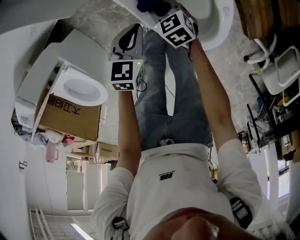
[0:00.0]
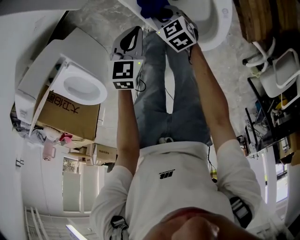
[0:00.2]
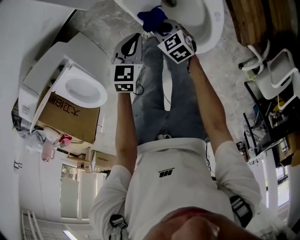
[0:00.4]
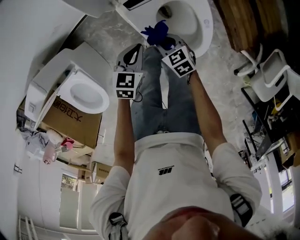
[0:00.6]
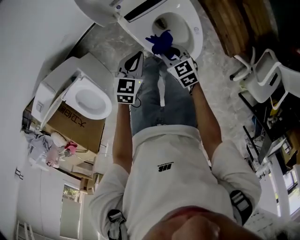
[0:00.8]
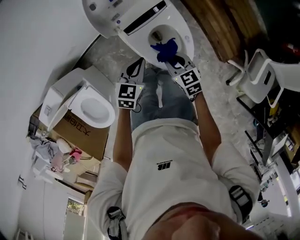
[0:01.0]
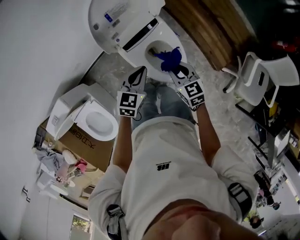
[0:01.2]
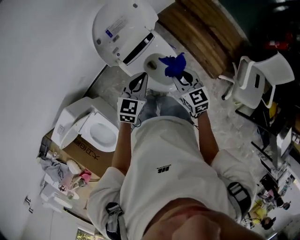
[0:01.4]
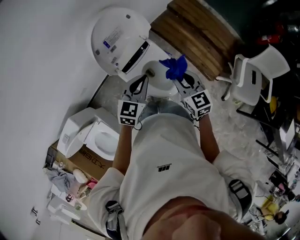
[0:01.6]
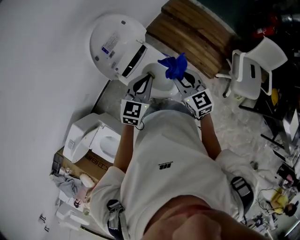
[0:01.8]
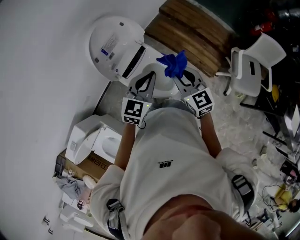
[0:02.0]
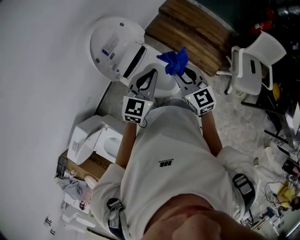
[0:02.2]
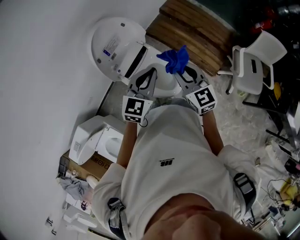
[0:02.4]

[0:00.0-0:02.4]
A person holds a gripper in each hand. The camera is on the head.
0:00.0 to 0:01.2: Both grippers travel together upward, some 40 cm. The left gripper changes its angle by some 20 degrees. The right gripper turns by about 30 degrees.
0:01.2 to 0:02.4: Both grippers move upward, about 20 cm. The left gripper turns by about 30 degrees. The right gripper rotates roughly 30 degrees.

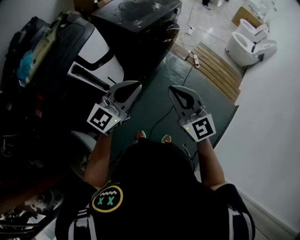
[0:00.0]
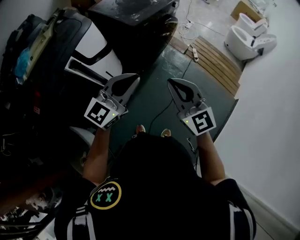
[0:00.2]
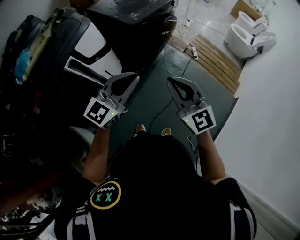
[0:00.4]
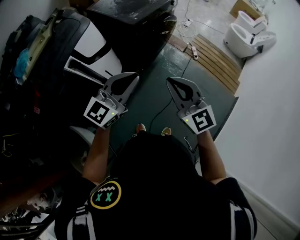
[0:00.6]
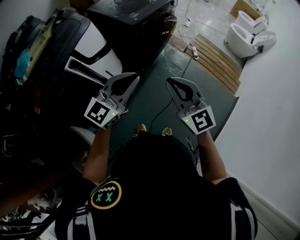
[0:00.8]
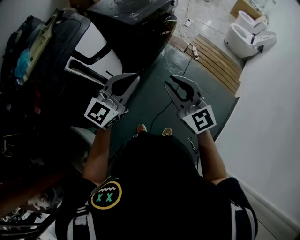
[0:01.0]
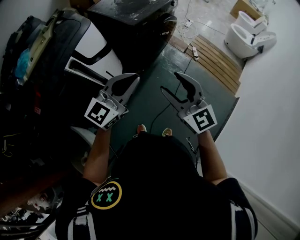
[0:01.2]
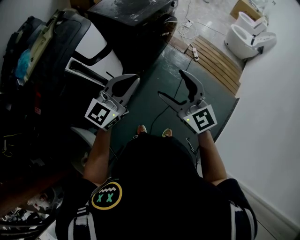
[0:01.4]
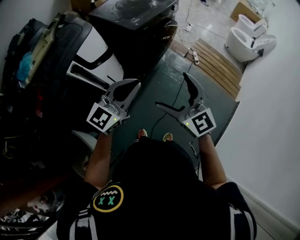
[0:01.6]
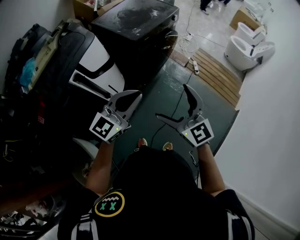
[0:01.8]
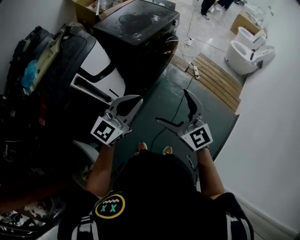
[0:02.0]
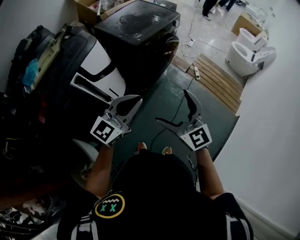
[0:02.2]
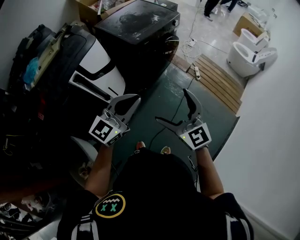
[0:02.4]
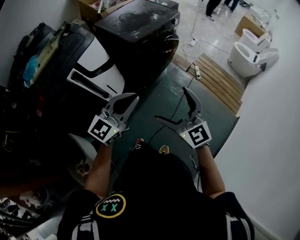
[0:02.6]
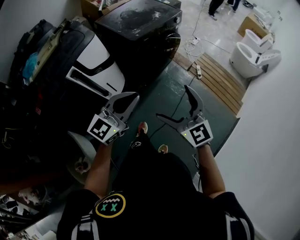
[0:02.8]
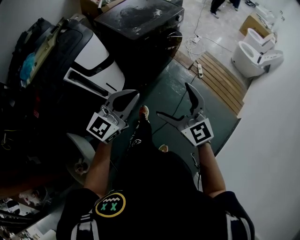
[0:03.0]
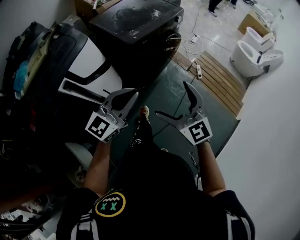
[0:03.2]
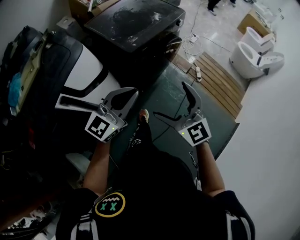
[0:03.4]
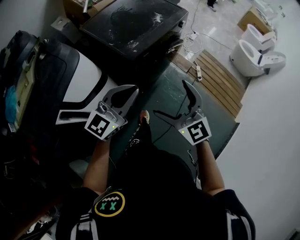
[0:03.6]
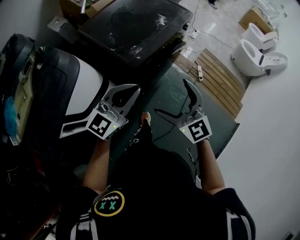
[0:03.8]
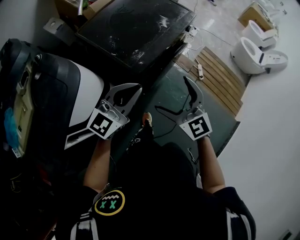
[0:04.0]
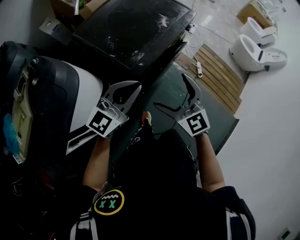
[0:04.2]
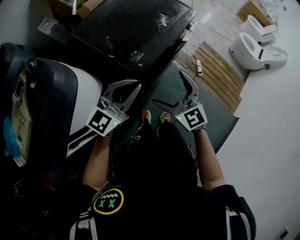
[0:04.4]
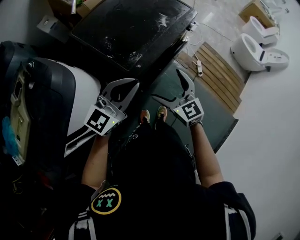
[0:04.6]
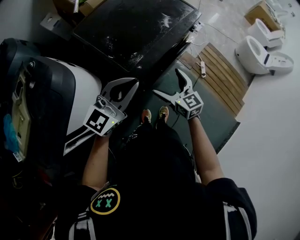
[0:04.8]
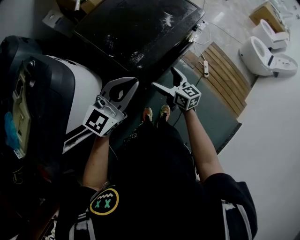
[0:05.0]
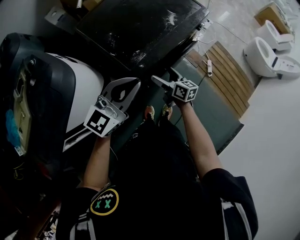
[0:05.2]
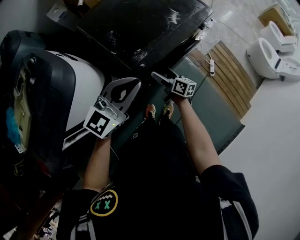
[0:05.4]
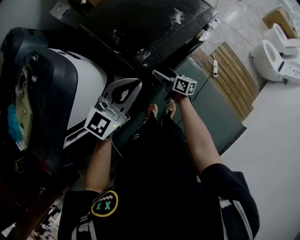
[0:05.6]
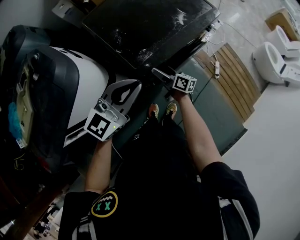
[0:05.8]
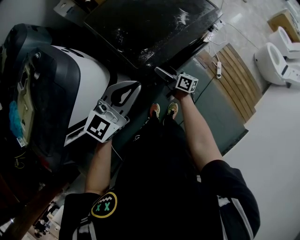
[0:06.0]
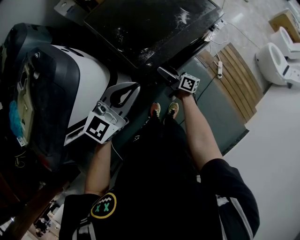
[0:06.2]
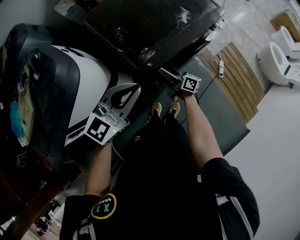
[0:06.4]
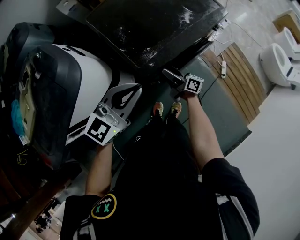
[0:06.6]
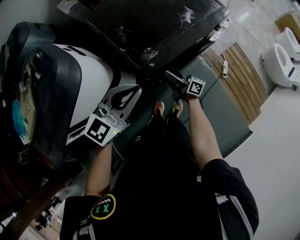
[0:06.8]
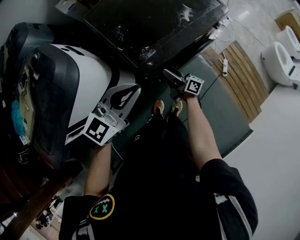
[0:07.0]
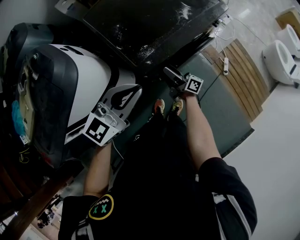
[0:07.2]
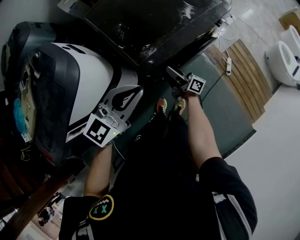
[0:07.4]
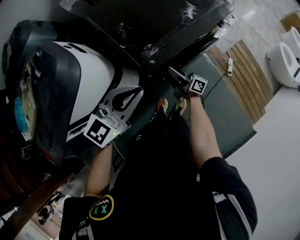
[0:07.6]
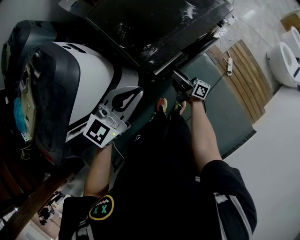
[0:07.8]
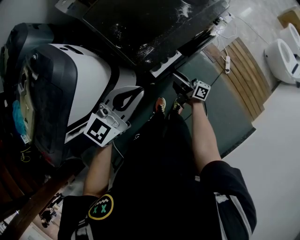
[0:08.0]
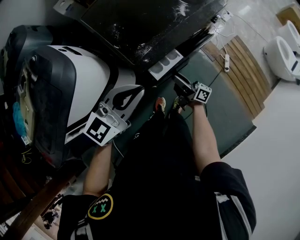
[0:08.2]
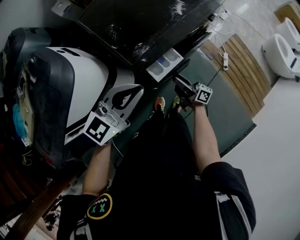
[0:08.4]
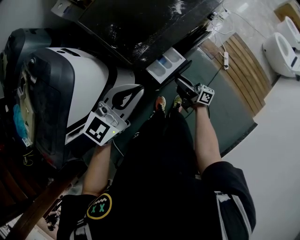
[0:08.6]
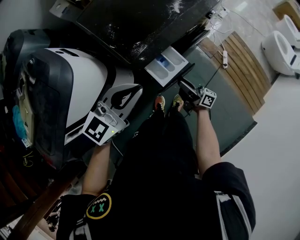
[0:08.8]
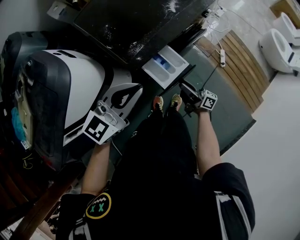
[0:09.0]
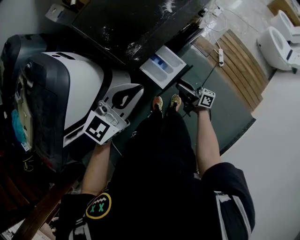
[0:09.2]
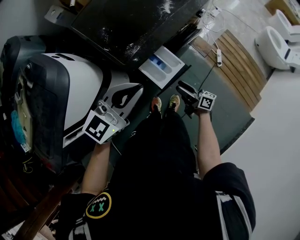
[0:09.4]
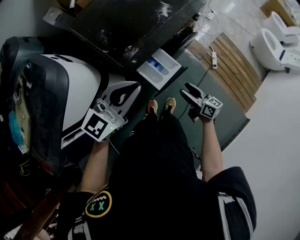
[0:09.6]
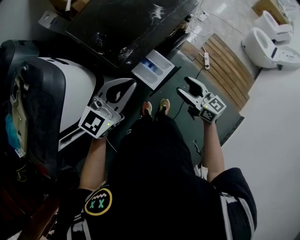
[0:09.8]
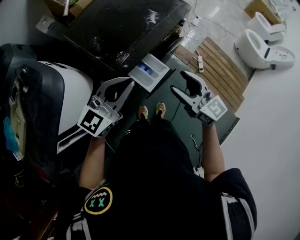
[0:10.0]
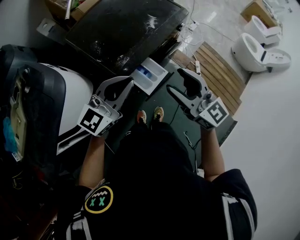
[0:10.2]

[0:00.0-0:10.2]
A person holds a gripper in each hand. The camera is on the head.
0:00.0 to 0:01.4: The right gripper opens up.
0:01.4 to 0:03.0: The right gripper moves to the right, approximately 5 cm, while the left gripper shifts by some 5 cm.
0:03.0 to 0:04.4: The pair of grippers is taken forward, about 40 cm.
0:04.4 to 0:05.8: The right gripper shifts roughly 25 cm downward and forward, and rotates around the line of its fingers by approximately 70 degrees, clockwise from behind.
0:05.8 to 0:07.2: The right gripper swivels approximately 20 degrees, and closes its fingers.
0:07.2 to 0:08.8: The right gripper moves to the right and backward, some 15 cm.
0:08.8 to 0:10.2: The left gripper goes about 5 cm upward; the right gripper shifts approximately 30 cm upward, and twists some 60 degrees counterclockwise, seen from behind.

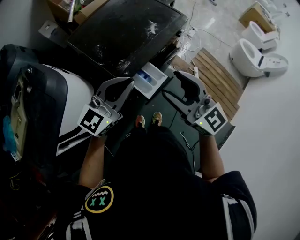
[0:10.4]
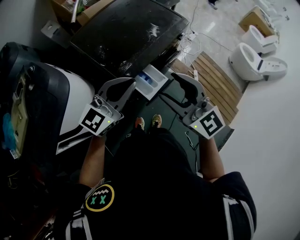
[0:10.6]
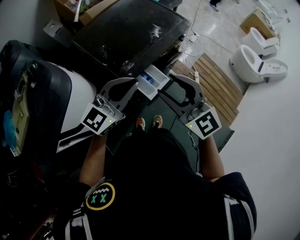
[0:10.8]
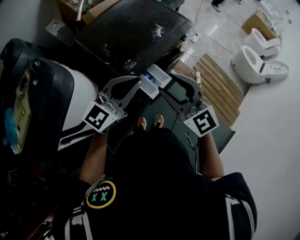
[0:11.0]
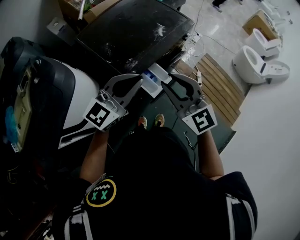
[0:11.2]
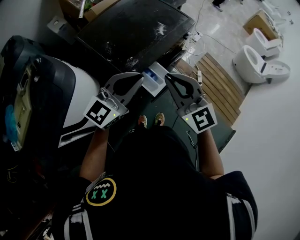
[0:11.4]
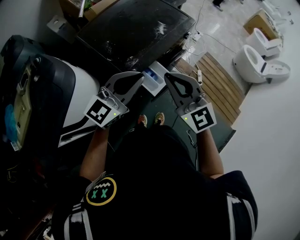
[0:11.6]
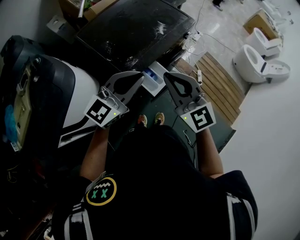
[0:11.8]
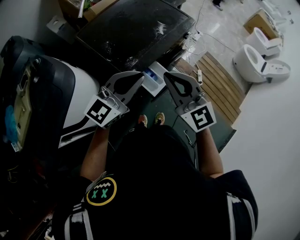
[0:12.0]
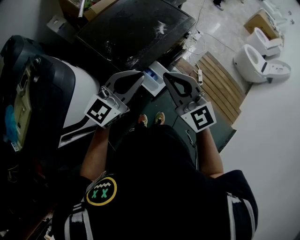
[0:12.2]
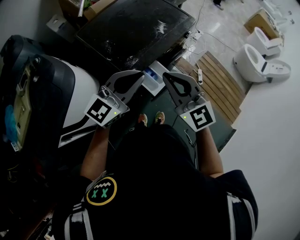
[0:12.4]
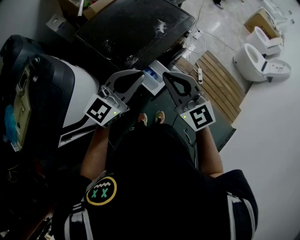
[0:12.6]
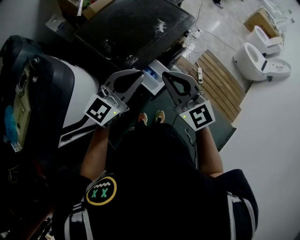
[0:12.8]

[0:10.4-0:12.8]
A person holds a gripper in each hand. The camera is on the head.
0:10.4 to 0:11.6: The right gripper closes its fingers.
0:11.6 to 0:12.8: Neither gripper changes place.

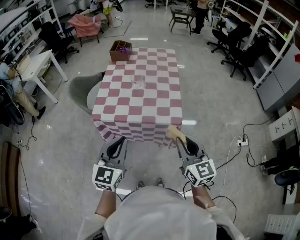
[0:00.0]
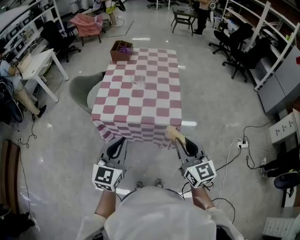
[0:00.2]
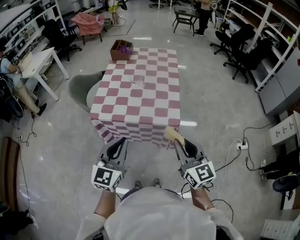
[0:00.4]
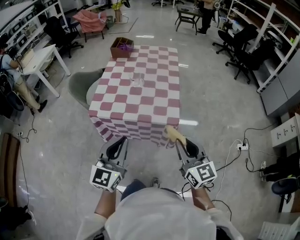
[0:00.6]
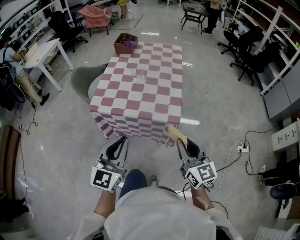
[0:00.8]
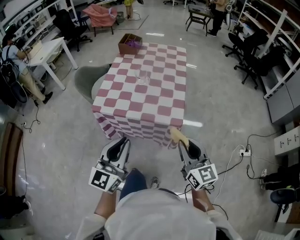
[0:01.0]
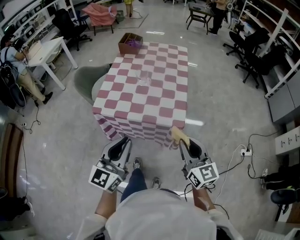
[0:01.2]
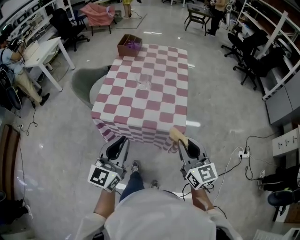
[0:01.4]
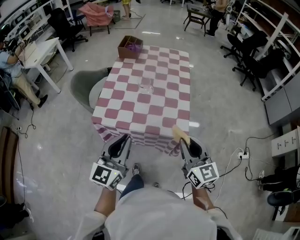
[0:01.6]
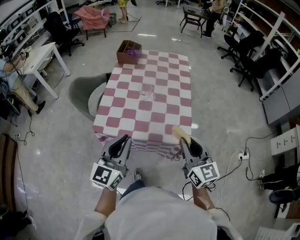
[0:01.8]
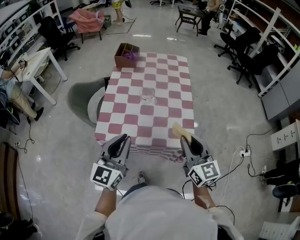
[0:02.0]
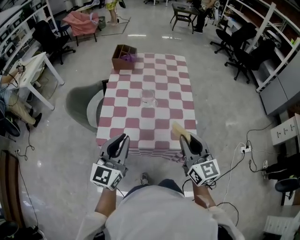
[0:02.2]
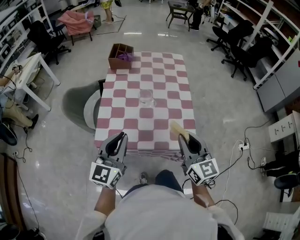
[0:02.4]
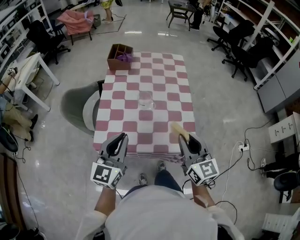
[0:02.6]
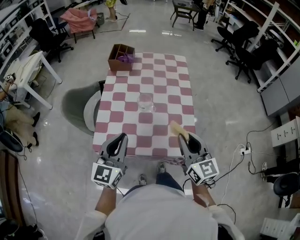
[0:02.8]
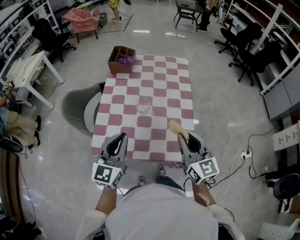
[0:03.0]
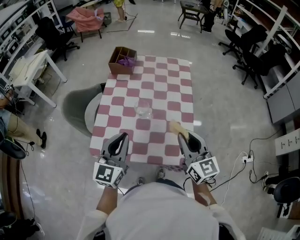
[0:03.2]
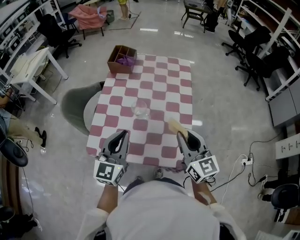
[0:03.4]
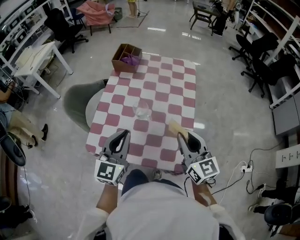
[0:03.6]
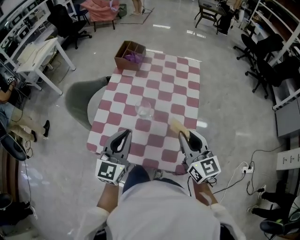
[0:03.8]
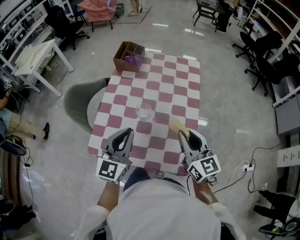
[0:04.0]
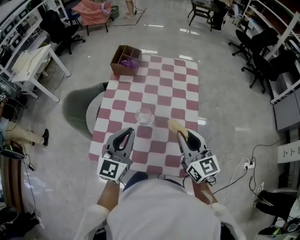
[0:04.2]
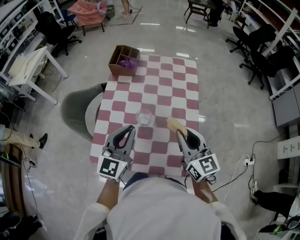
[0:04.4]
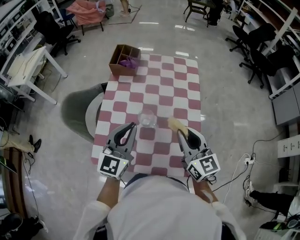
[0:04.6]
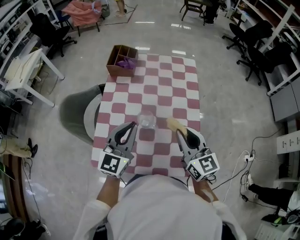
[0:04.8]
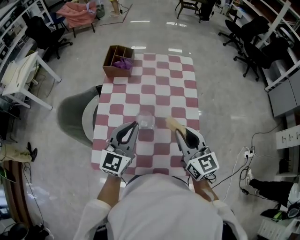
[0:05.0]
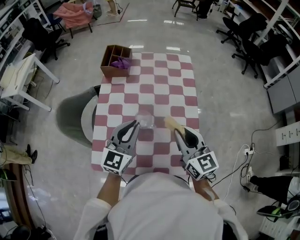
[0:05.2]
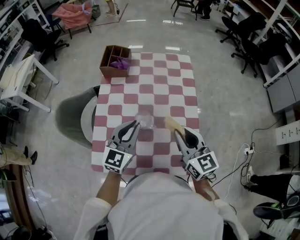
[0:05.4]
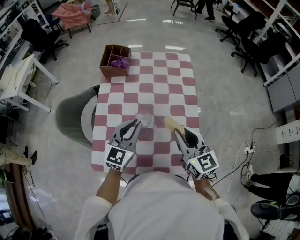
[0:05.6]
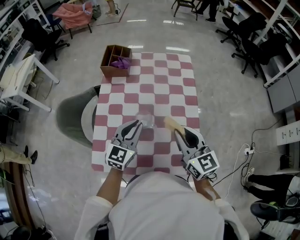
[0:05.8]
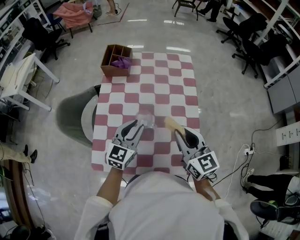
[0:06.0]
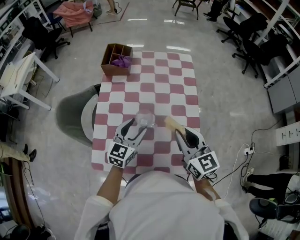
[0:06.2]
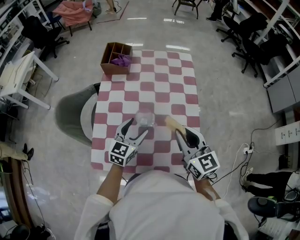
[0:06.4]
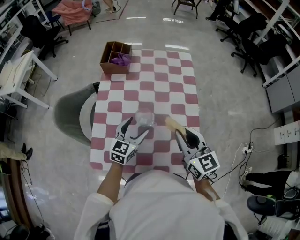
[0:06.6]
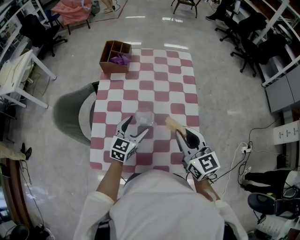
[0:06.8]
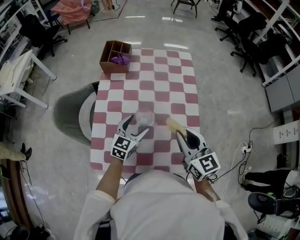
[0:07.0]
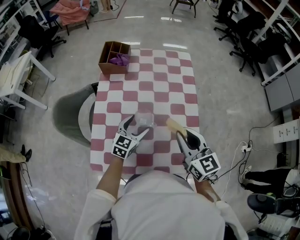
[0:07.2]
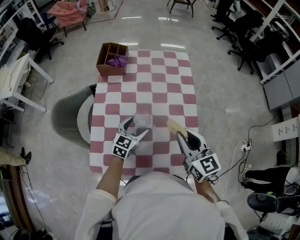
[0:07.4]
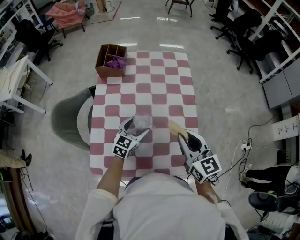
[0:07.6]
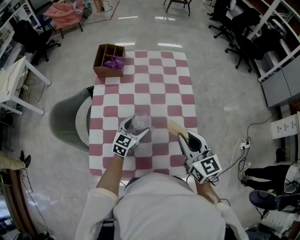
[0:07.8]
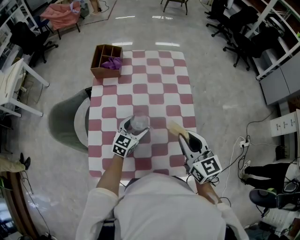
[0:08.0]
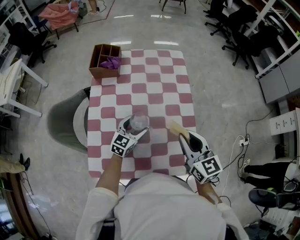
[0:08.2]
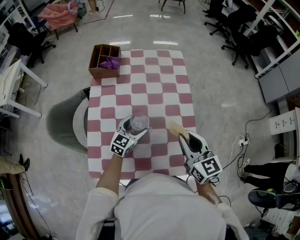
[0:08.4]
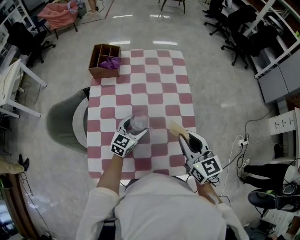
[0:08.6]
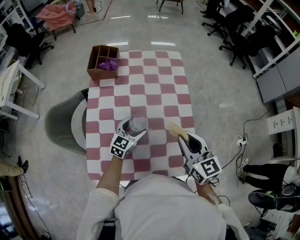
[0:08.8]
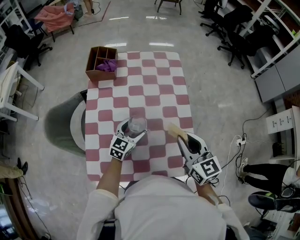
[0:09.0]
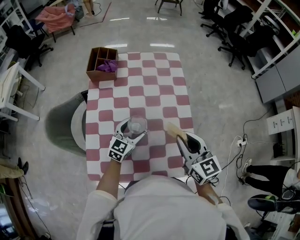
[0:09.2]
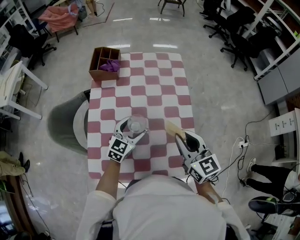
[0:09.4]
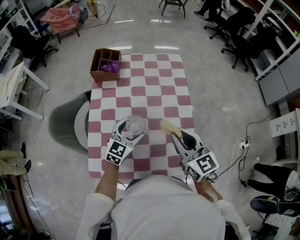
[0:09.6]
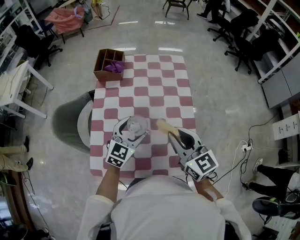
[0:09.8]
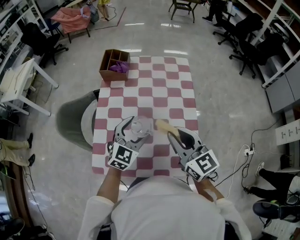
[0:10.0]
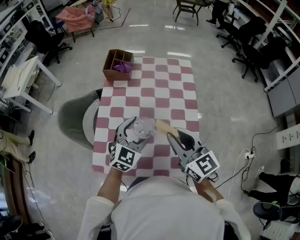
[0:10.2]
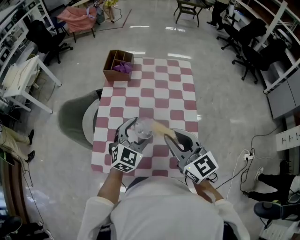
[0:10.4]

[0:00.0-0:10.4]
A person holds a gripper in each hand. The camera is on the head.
0:00.0 to 0:01.4: The right gripper heads forward, covering some 5 cm.
0:01.4 to 0:03.0: Both grippers travel together forward, roughly 20 cm.
0:03.0 to 0:04.4: The grippers both shift forward by roughly 10 cm.
0:04.4 to 0:06.0: The left gripper shifts some 10 cm downward and forward.
0:06.0 to 0:07.4: The left gripper travels downward by about 10 cm, and opens up.
0:07.4 to 0:09.0: There are only small adjustments of the grippers.
0:09.0 to 0:10.4: The left gripper shifts approximately 15 cm upward and backward, and rotates about 20 degrees; the right gripper goes approximately 10 cm to the left and upward, and swivels some 20 degrees.
